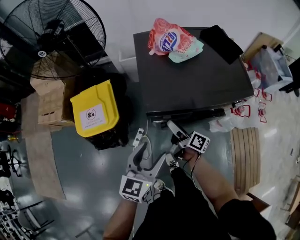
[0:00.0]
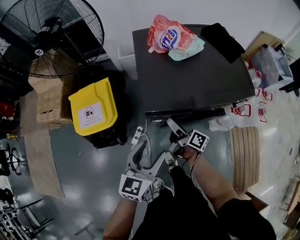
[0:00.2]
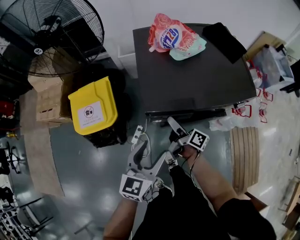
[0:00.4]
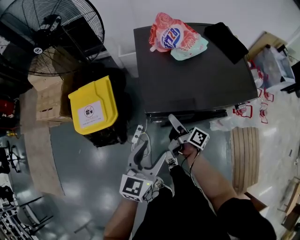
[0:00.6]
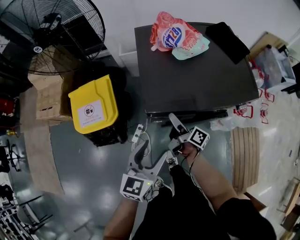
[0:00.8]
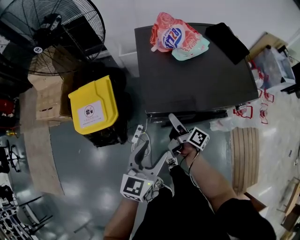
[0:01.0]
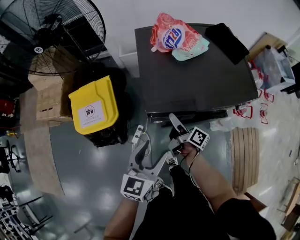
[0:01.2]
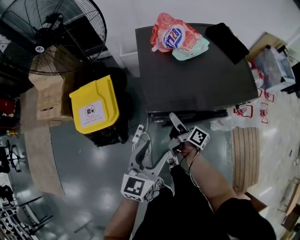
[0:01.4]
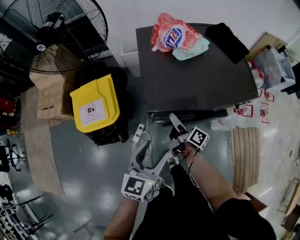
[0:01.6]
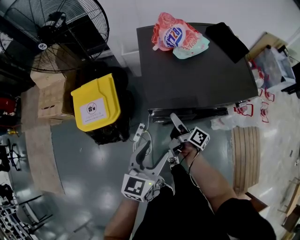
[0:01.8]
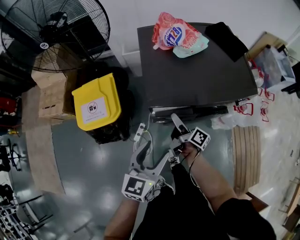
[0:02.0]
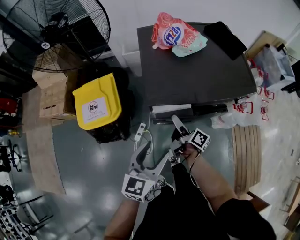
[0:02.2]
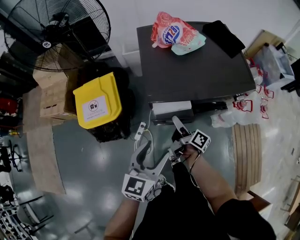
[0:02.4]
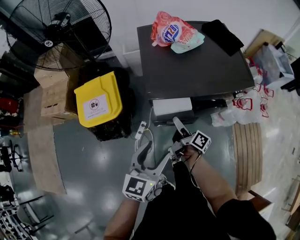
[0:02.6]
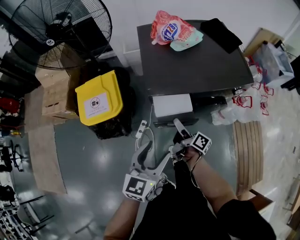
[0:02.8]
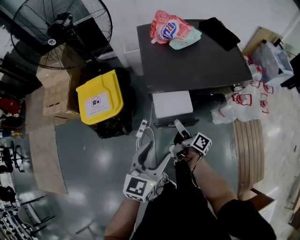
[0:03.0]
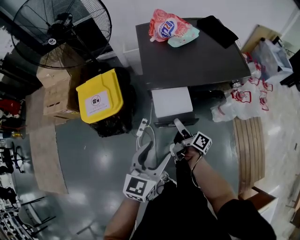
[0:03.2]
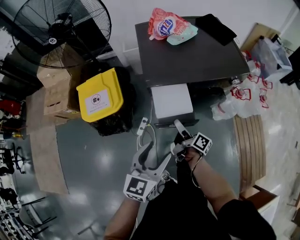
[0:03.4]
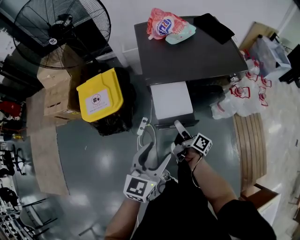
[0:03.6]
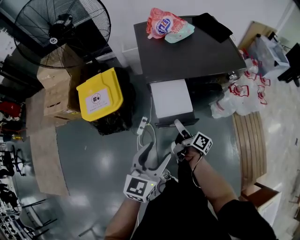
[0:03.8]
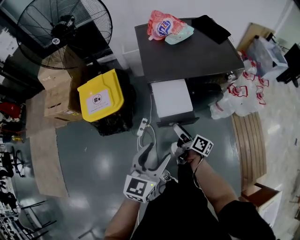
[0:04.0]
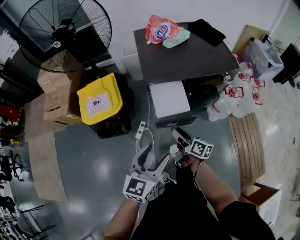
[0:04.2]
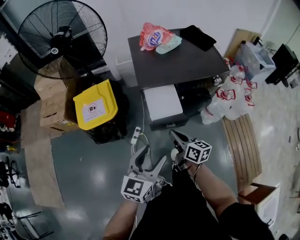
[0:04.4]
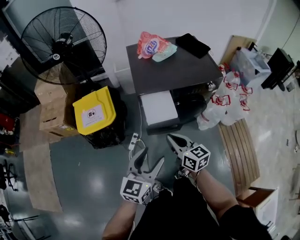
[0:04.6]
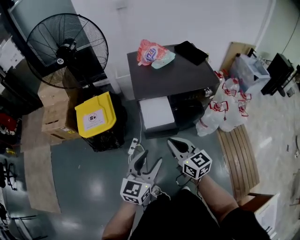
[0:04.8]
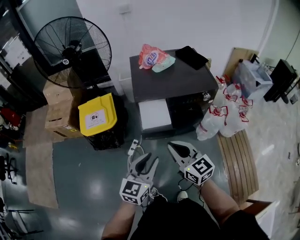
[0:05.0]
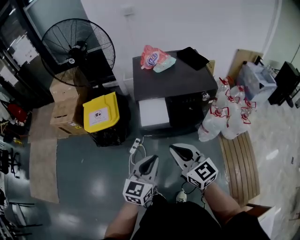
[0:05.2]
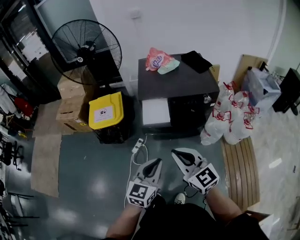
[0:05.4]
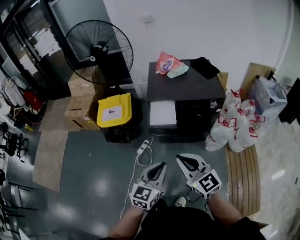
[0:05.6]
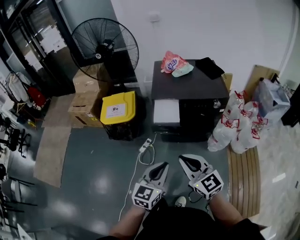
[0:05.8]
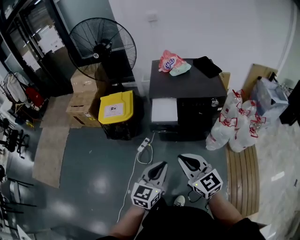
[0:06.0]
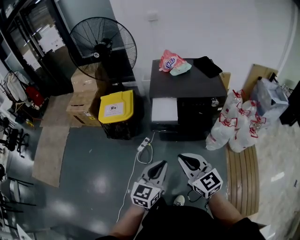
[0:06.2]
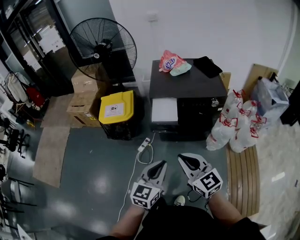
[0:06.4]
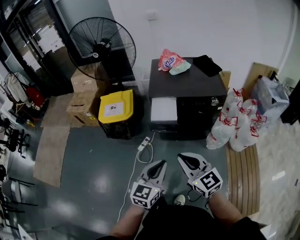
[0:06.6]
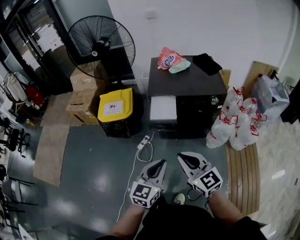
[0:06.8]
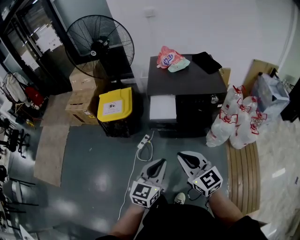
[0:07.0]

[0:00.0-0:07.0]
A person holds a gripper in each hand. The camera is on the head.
0:00.0 to 0:01.4: There are only small adjustments of the grippers.
0:01.4 to 0:02.8: The grippers both shift backward by about 10 cm.
0:02.8 to 0:04.2: The grippers both shift backward by some 10 cm. The right gripper swivels some 20 degrees, and closes its fingers.
0:04.2 to 0:05.6: The right gripper moves upward and backward, roughly 35 cm, rotates around the line of its fingers by some 70 degrees, counterclockwise from behind, and closes its fingers, while the left gripper is displaced backward and to the right by about 20 cm, and closes.
0:05.6 to 0:07.0: The grippers make only small movements.

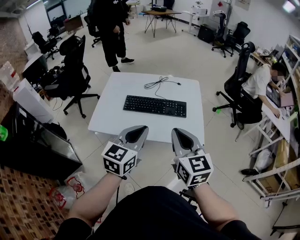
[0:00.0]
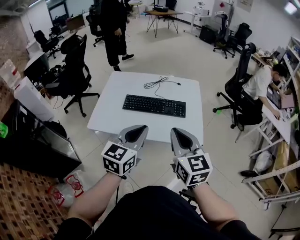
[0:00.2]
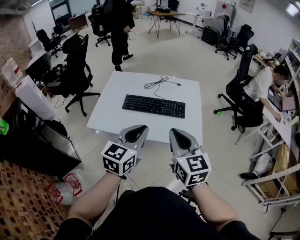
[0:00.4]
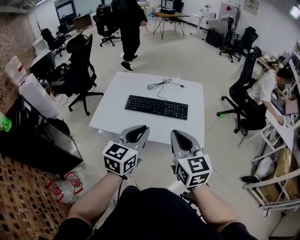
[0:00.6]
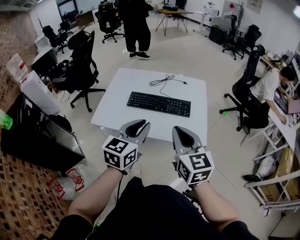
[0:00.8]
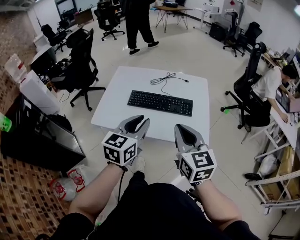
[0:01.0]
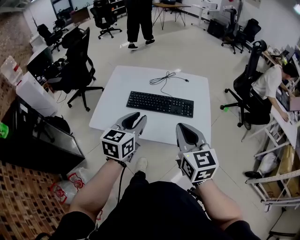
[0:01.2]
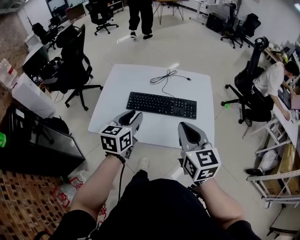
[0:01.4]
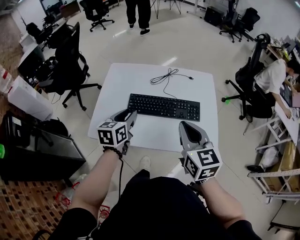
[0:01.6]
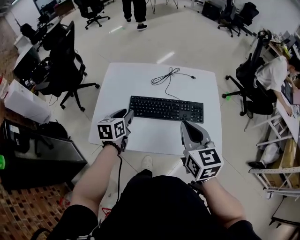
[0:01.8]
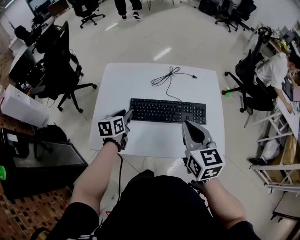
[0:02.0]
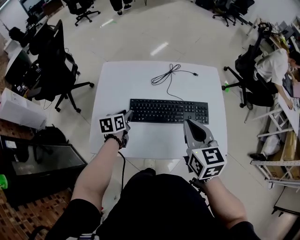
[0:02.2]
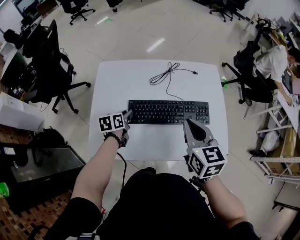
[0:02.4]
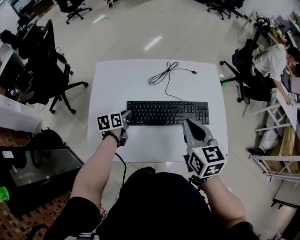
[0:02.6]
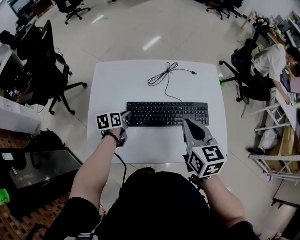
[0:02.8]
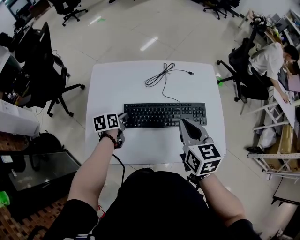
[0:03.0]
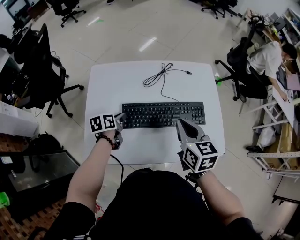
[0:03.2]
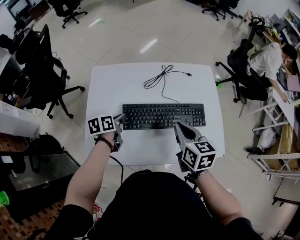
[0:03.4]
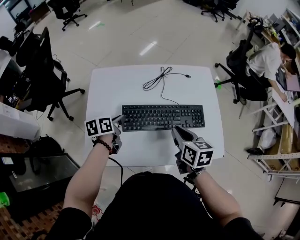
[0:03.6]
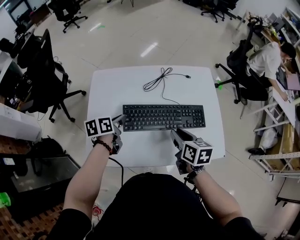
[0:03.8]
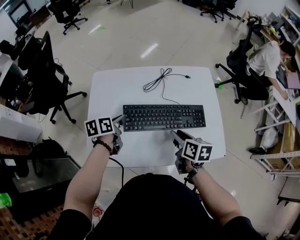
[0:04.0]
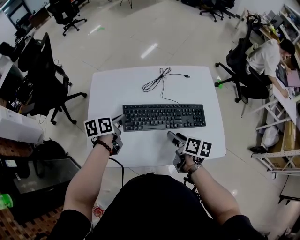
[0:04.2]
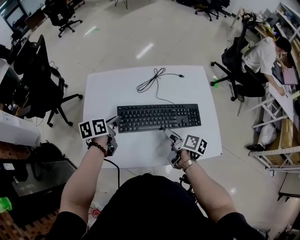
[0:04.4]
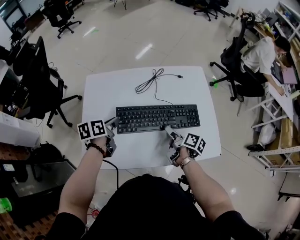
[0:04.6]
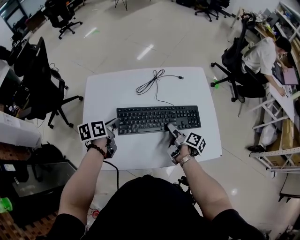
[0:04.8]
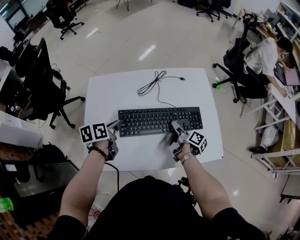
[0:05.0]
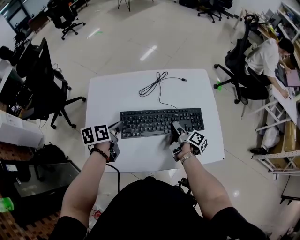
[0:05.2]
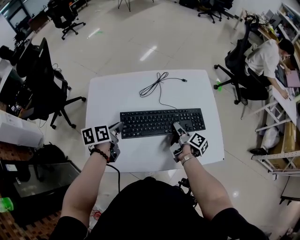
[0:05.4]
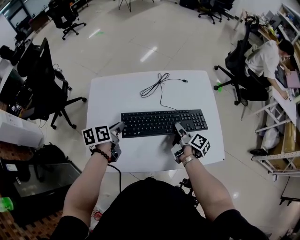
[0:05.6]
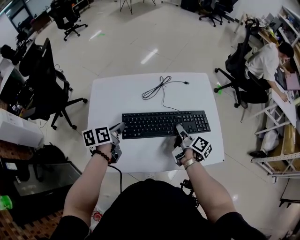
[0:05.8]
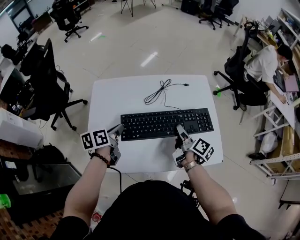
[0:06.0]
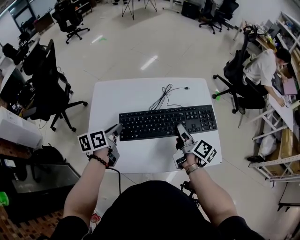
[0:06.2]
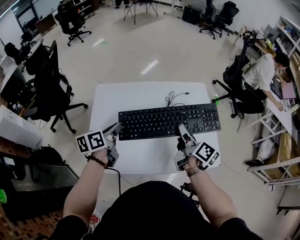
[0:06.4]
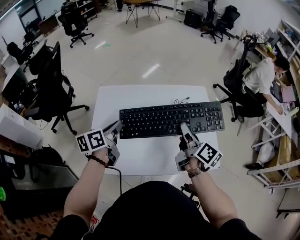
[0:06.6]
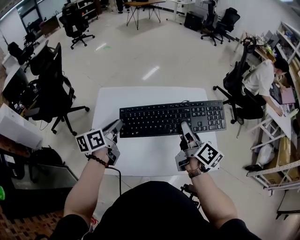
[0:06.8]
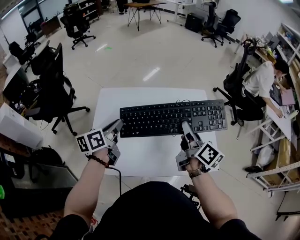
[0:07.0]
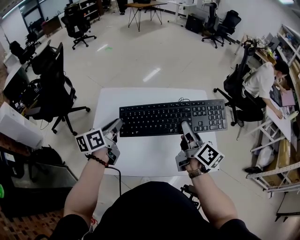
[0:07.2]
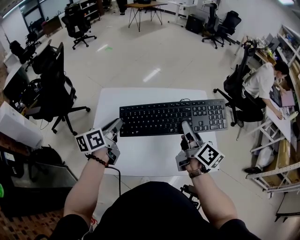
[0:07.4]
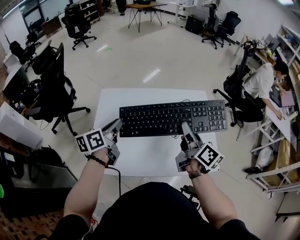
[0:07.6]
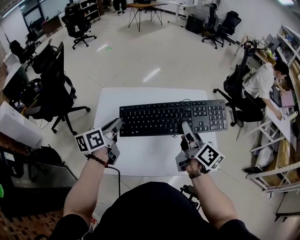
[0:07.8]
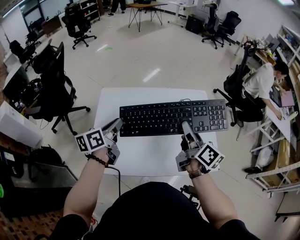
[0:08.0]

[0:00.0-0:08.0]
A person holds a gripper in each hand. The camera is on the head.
0:00.0 to 0:01.6: The left gripper travels forward, to the left and downward by roughly 25 cm, rotates some 20 degrees, and opens, while the right gripper heads forward, covering some 15 cm.
0:01.6 to 0:03.2: The left gripper goes roughly 20 cm downward, forward and to the left, and changes its angle by roughly 30 degrees. The right gripper moves forward and downward, approximately 15 cm.
0:03.2 to 0:04.8: The left gripper moves upward, approximately 5 cm; the right gripper moves downward, approximately 20 cm, twists some 70 degrees clockwise, seen from behind, and opens up.
0:04.8 to 0:06.4: The left gripper moves upward, about 10 cm, while the right gripper travels upward by roughly 20 cm, changes its angle by approximately 30 degrees, and closes its fingers.
0:06.4 to 0:08.0: Both grippers travel together upward, some 5 cm.

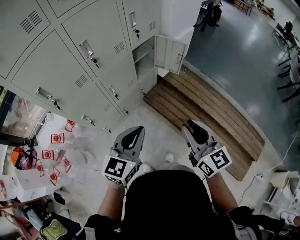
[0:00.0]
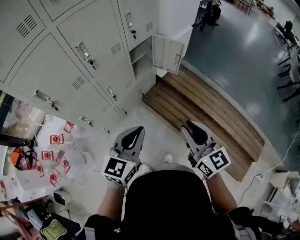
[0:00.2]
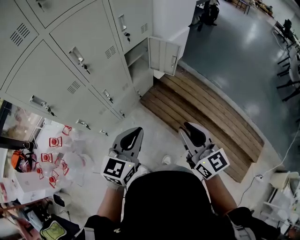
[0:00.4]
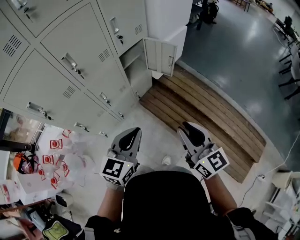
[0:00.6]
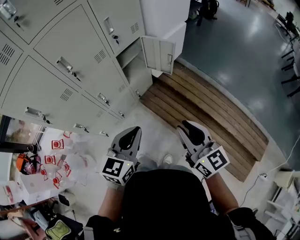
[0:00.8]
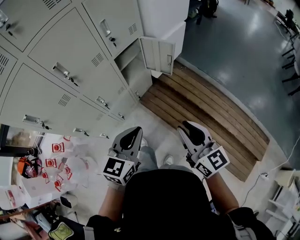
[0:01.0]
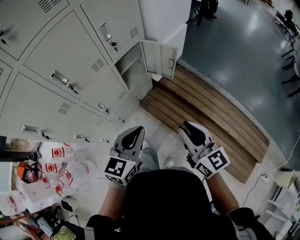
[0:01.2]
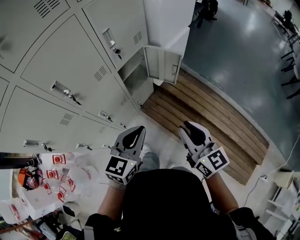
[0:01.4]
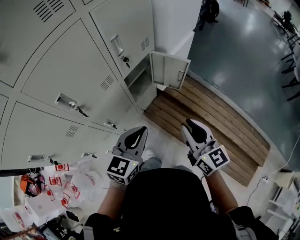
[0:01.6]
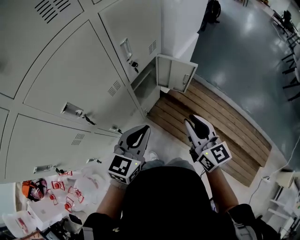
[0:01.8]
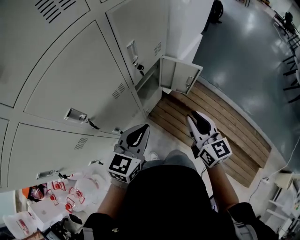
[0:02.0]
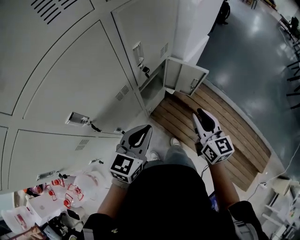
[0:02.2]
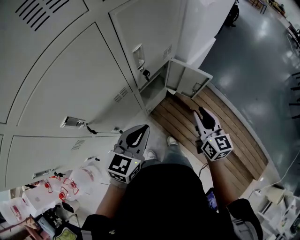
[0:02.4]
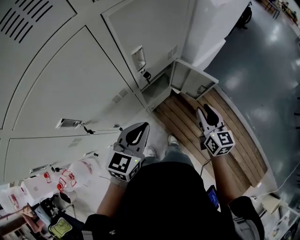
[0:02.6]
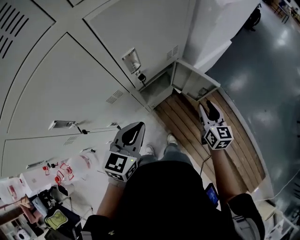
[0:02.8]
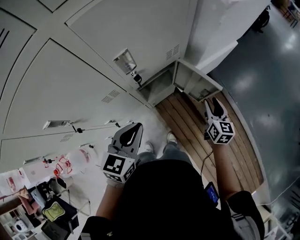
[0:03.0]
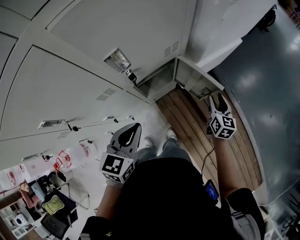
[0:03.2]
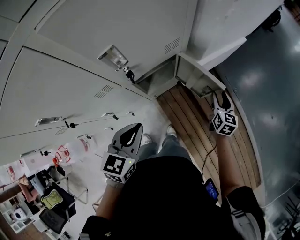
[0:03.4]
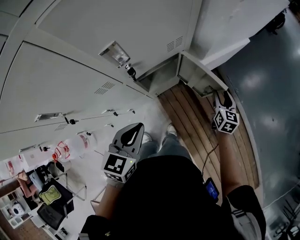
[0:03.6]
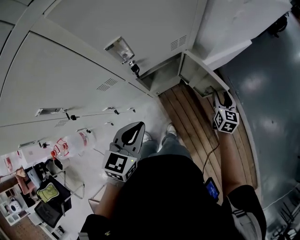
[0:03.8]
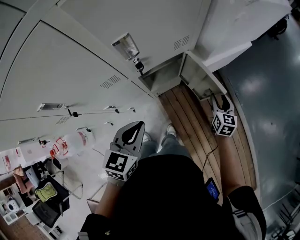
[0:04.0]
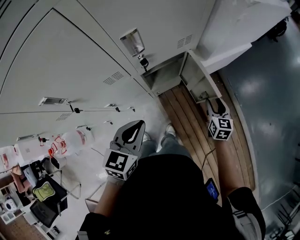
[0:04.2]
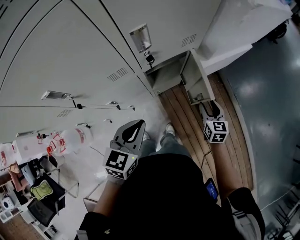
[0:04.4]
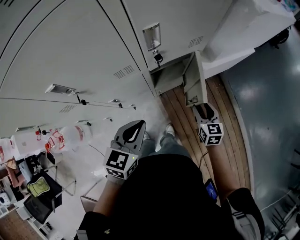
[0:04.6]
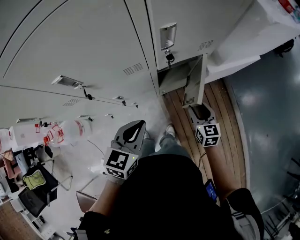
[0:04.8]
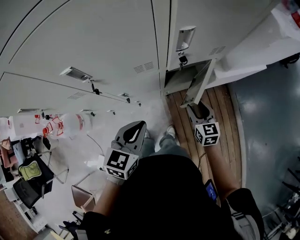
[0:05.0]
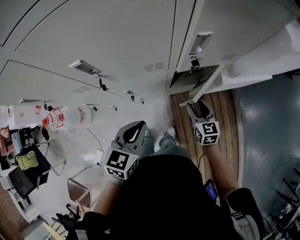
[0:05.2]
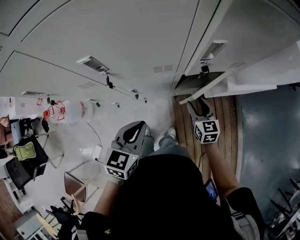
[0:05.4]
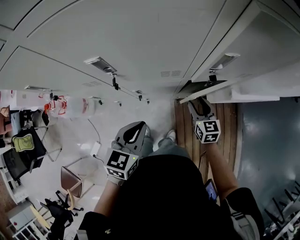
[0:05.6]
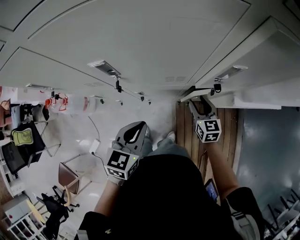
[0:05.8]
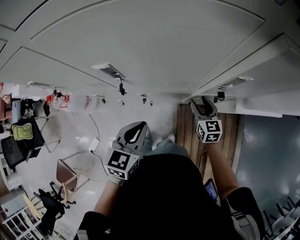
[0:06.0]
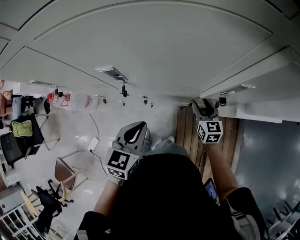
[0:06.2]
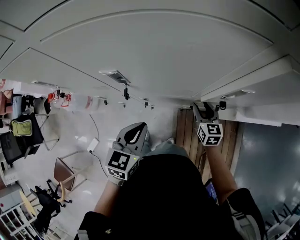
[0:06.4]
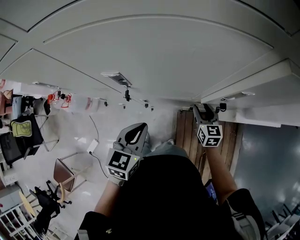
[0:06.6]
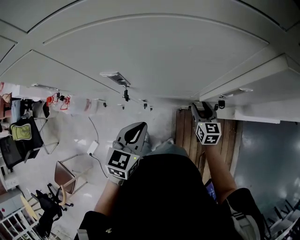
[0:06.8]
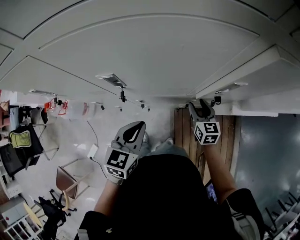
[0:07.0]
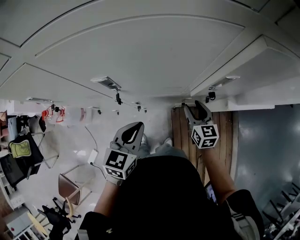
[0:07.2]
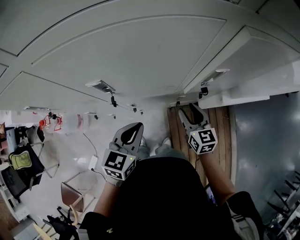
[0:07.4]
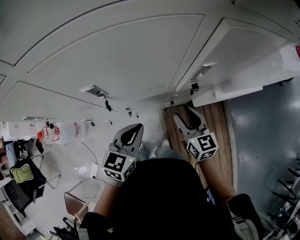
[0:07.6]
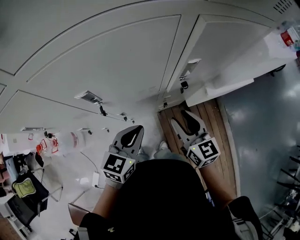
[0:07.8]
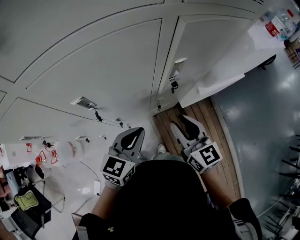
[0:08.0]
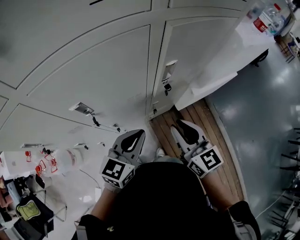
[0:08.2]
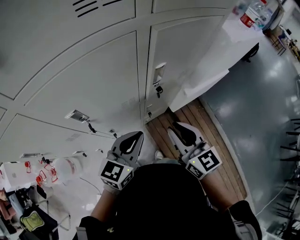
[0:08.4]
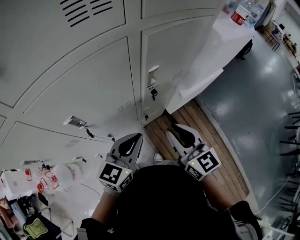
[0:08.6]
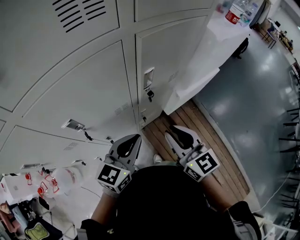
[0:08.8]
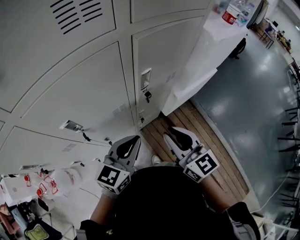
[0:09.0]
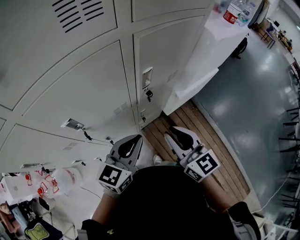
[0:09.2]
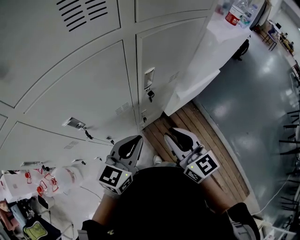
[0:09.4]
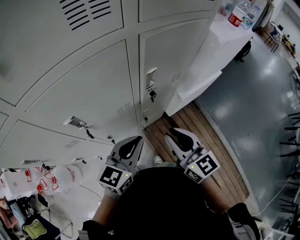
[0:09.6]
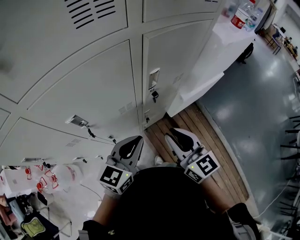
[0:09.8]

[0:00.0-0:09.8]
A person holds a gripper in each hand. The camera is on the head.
0:00.0 to 0:01.4: Both grippers travel together forward, some 20 cm.
0:01.4 to 0:02.8: The right gripper heads forward and downward, covering about 35 cm. Meanwhile the left gripper shifts about 20 cm forward and to the left.
0:02.8 to 0:04.2: The left gripper shifts by approximately 5 cm; the right gripper goes approximately 10 cm downward.
0:04.2 to 0:05.6: The right gripper changes place by some 25 cm, and changes its angle by roughly 30 degrees. The left gripper shifts by roughly 15 cm, and swivels about 20 degrees.
0:05.6 to 0:07.0: The right gripper travels forward by approximately 5 cm.
0:07.0 to 0:08.4: The left gripper goes about 15 cm to the right and upward, and changes its angle by about 40 degrees. The right gripper moves upward and backward, some 30 cm, changes its angle by roughly 20 degrees, and closes.
0:08.4 to 0:09.8: The grippers move only a little.
